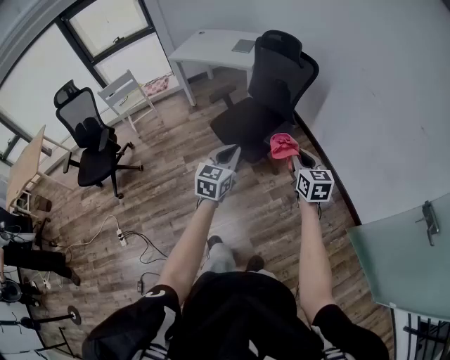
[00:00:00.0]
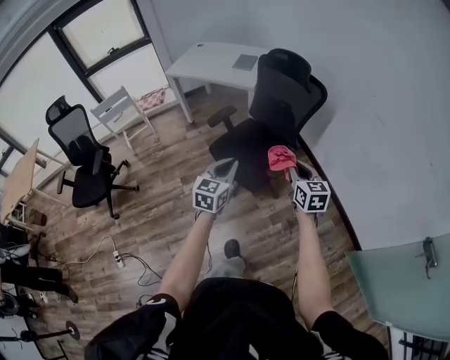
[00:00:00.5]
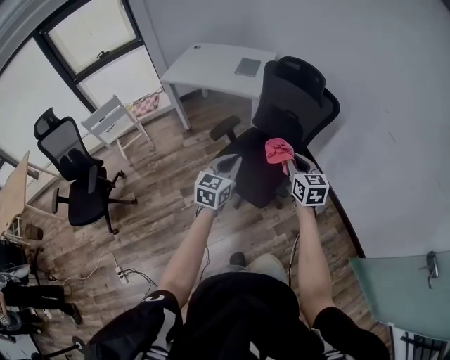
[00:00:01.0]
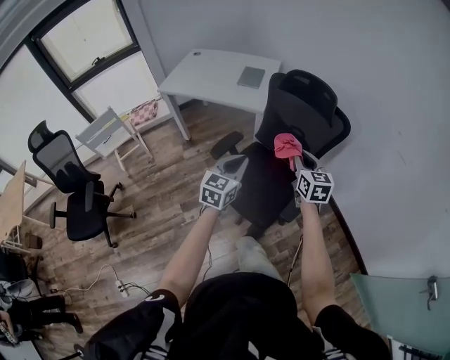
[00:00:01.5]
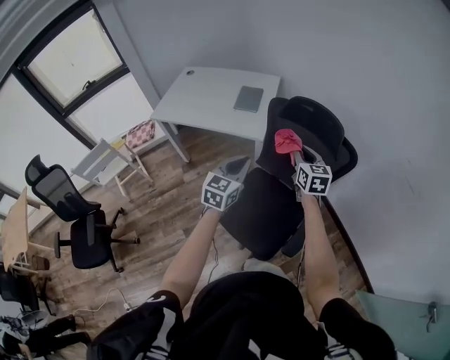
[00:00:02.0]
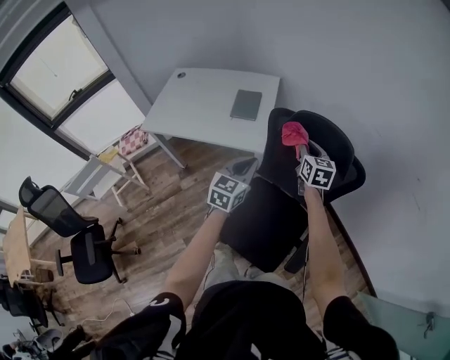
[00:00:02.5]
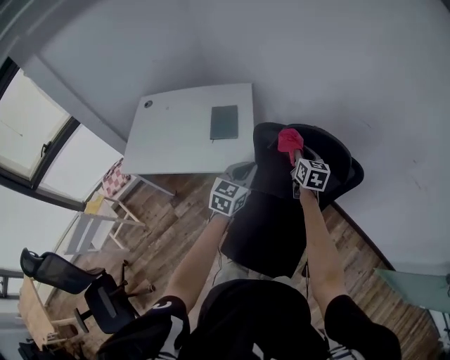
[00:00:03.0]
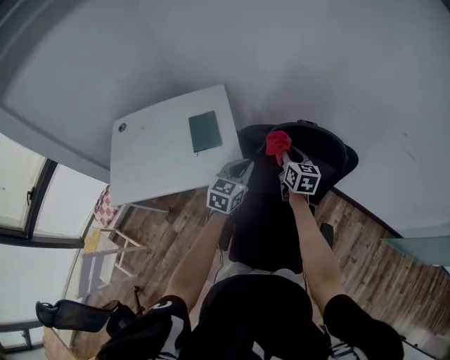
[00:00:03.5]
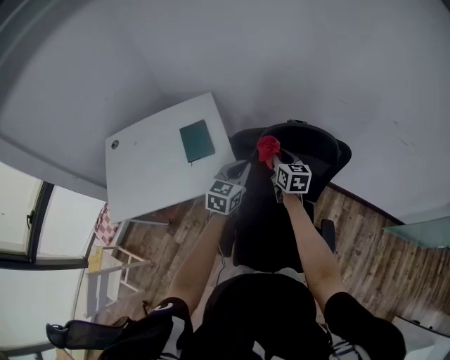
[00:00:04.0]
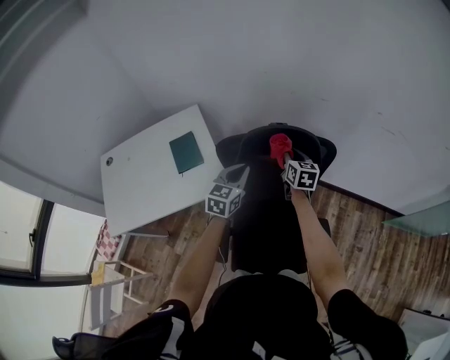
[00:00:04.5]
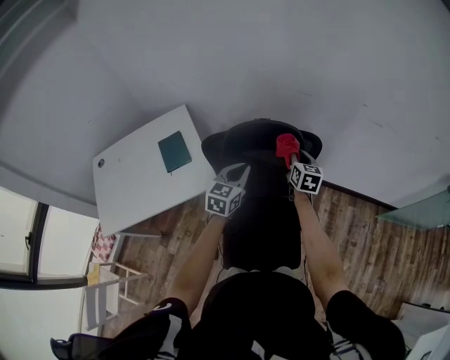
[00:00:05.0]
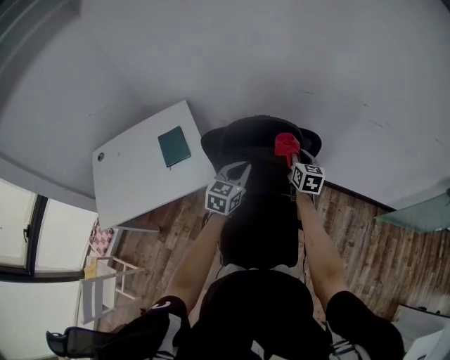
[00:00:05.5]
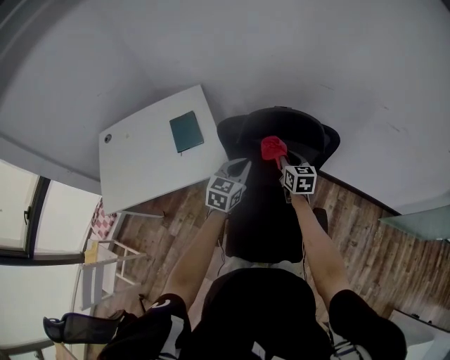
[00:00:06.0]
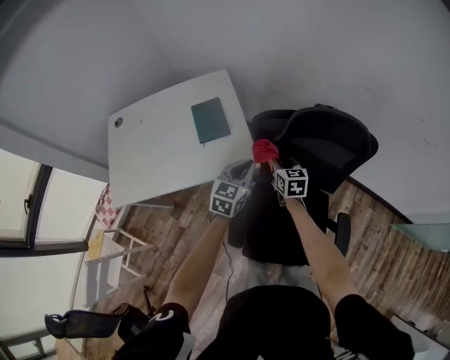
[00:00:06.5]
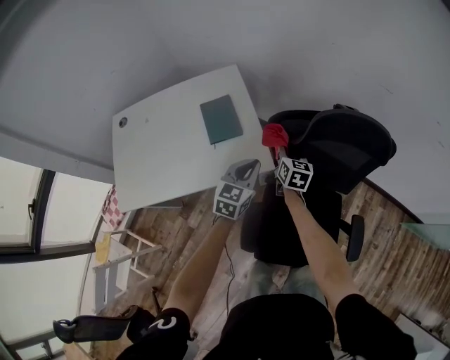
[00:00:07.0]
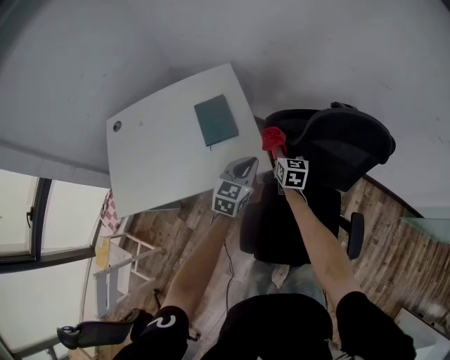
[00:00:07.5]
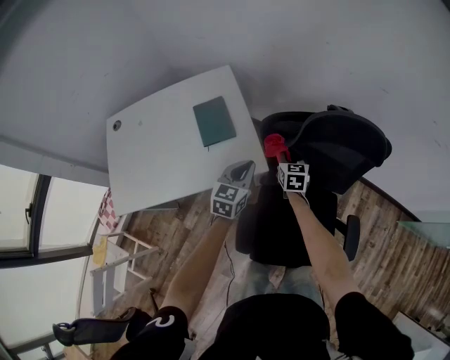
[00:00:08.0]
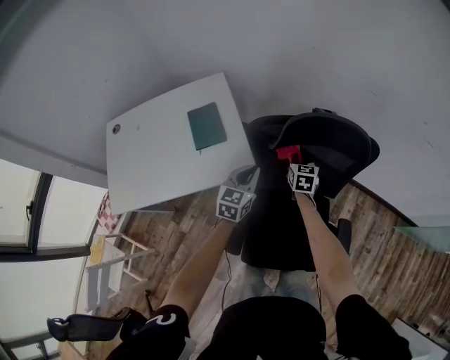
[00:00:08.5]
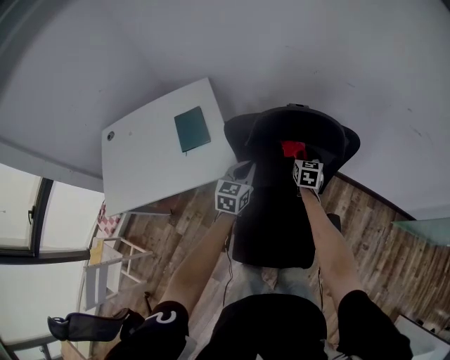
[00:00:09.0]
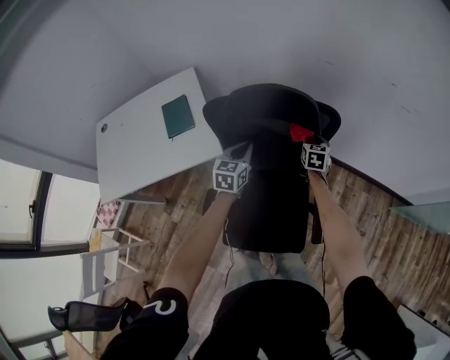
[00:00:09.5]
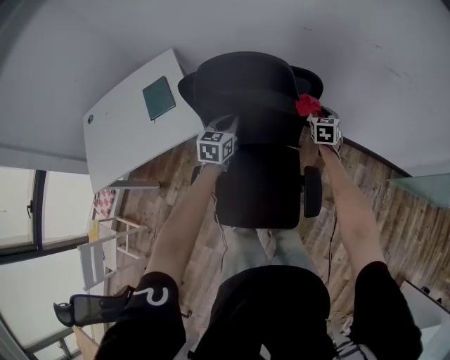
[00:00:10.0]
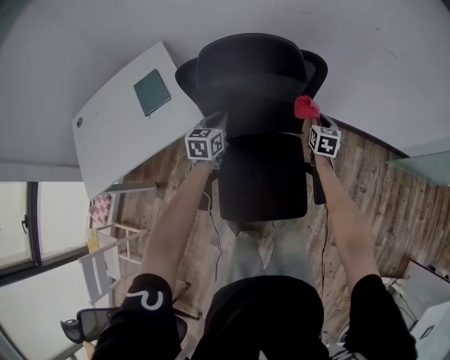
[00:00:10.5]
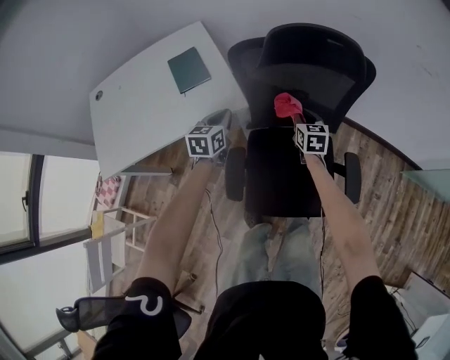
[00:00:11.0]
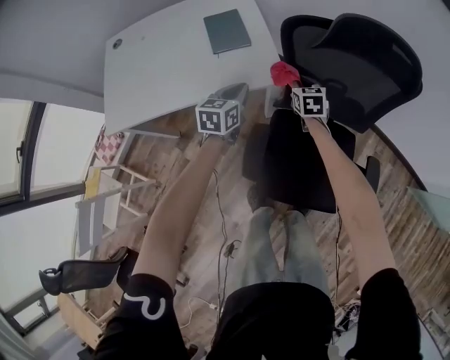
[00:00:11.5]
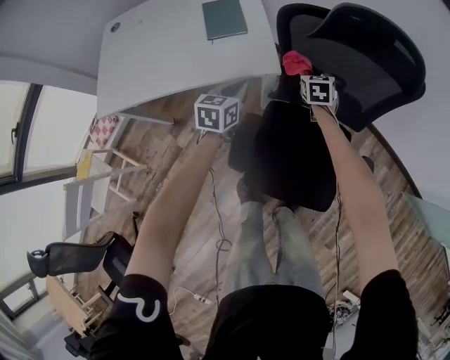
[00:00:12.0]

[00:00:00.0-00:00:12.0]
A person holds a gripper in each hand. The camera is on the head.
00:00:00.0 to 00:00:02.0: Both grippers are carried forward, about 60 cm.
00:00:02.0 to 00:00:04.0: The right gripper ends up about 25 cm from where it was, and turns by roughly 30 degrees. The left gripper shifts by approximately 30 cm, and turns by some 30 degrees.
00:00:04.0 to 00:00:06.0: The grippers both shift to the right by roughly 10 cm.
00:00:06.0 to 00:00:08.0: The two grippers go roughly 20 cm to the left and downward.
00:00:08.0 to 00:00:10.0: The right gripper is displaced to the right by approximately 40 cm, while the left gripper heads to the right, covering about 25 cm.
00:00:10.0 to 00:00:12.0: The left gripper is displaced to the left and backward by some 30 cm. Meanwhile the right gripper is displaced to the left by about 40 cm.

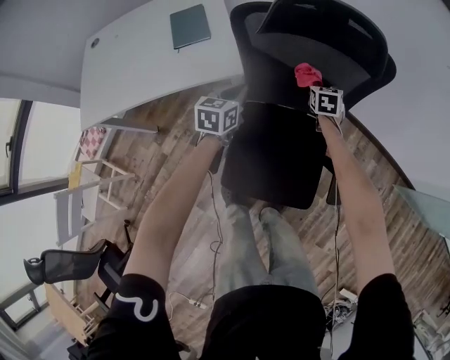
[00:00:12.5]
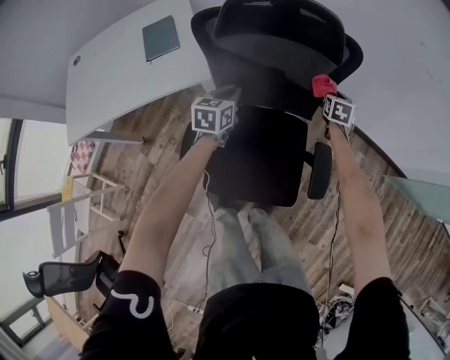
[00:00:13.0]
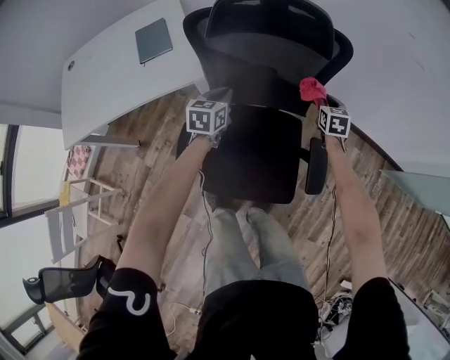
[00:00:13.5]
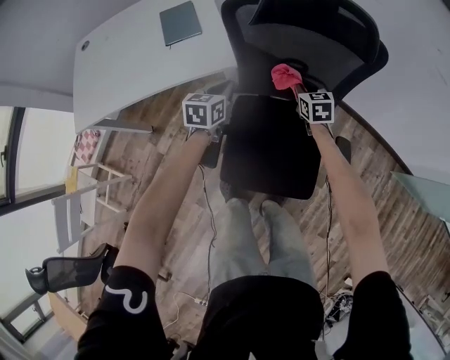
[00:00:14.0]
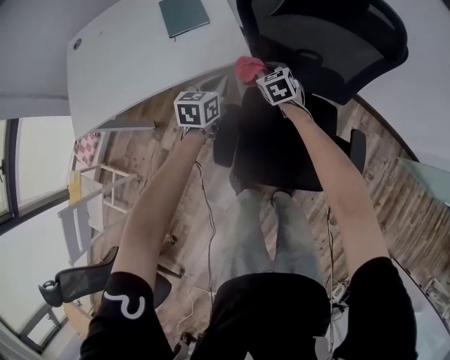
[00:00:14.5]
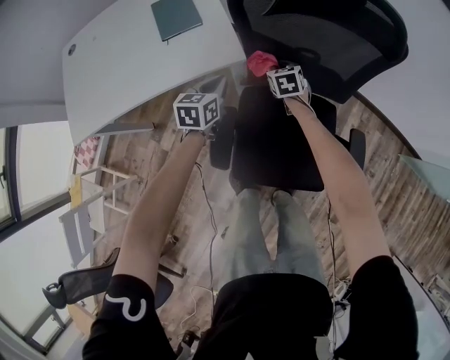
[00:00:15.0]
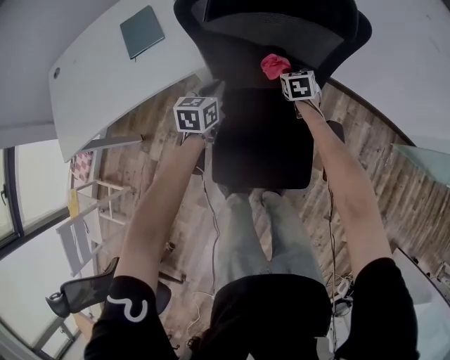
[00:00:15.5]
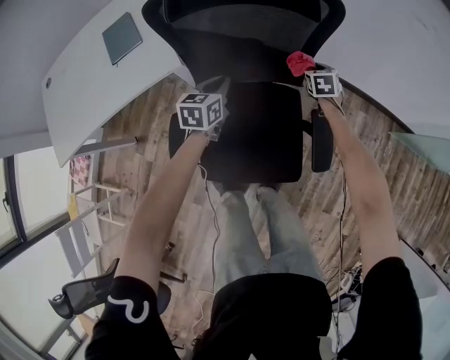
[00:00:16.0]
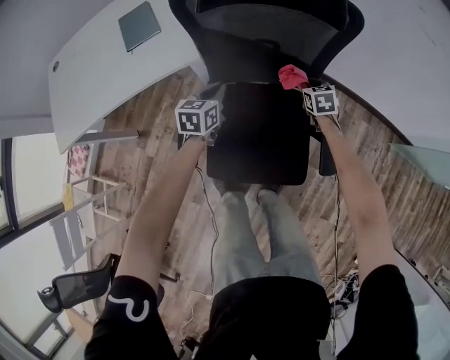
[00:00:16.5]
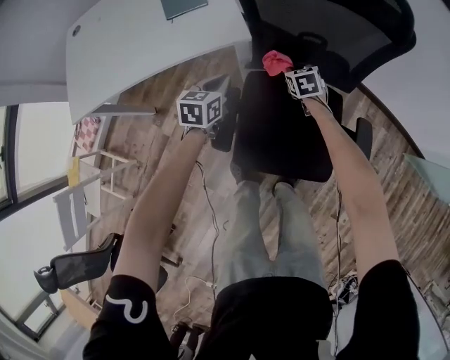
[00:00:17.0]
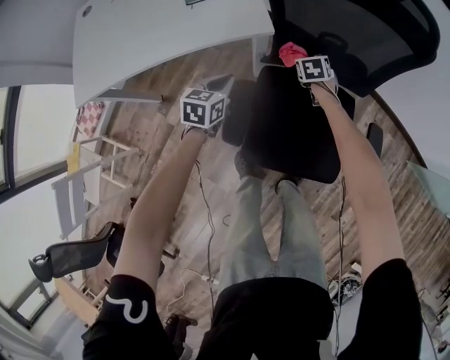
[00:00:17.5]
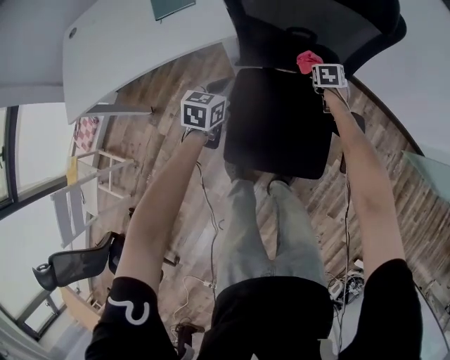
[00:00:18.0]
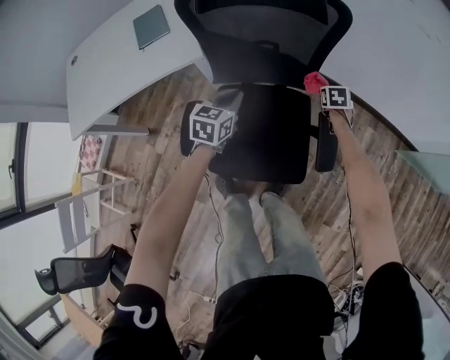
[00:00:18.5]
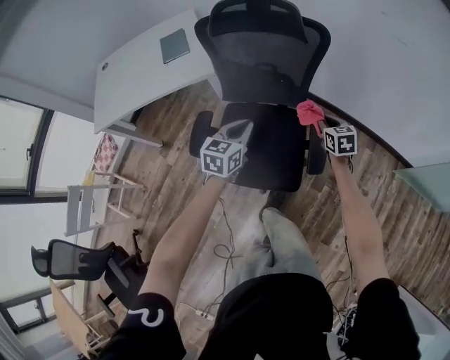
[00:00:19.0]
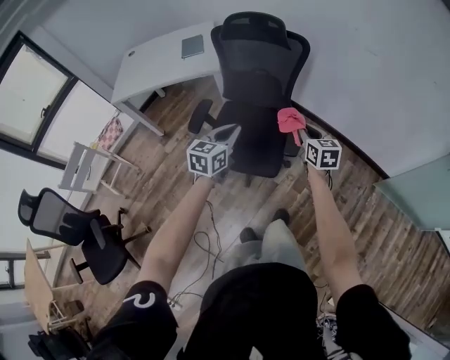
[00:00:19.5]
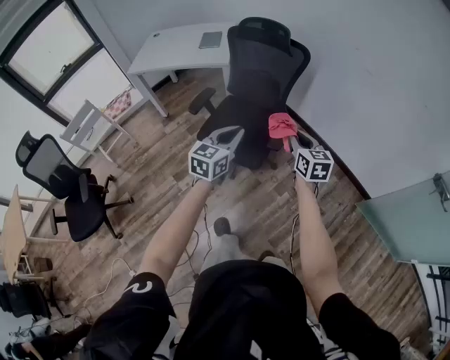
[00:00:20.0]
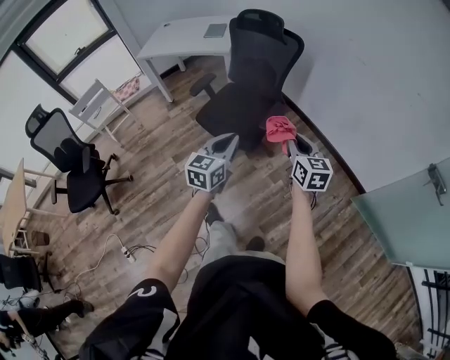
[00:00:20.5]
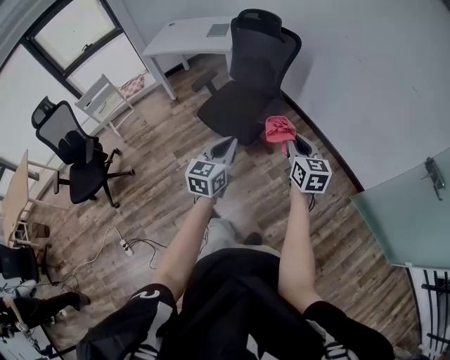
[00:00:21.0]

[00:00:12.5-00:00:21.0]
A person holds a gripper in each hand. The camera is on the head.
00:00:12.5 to 00:00:14.5: The left gripper travels to the left by some 10 cm; the right gripper goes roughly 25 cm to the left, and swivels about 20 degrees.
00:00:14.5 to 00:00:16.5: The left gripper heads to the right, covering roughly 15 cm, while the right gripper is displaced to the right by some 30 cm.
00:00:16.5 to 00:00:19.0: The left gripper heads backward, to the right and upward, covering some 30 cm; the right gripper shifts approximately 20 cm backward and upward, and goes to the left and returns, roughly 25 cm each way.
00:00:19.0 to 00:00:21.0: The two grippers travel together, backward, approximately 50 cm. The right gripper heads upward, covering some 25 cm, and turns by about 30 degrees. Meanwhile the left gripper turns by approximately 30 degrees.

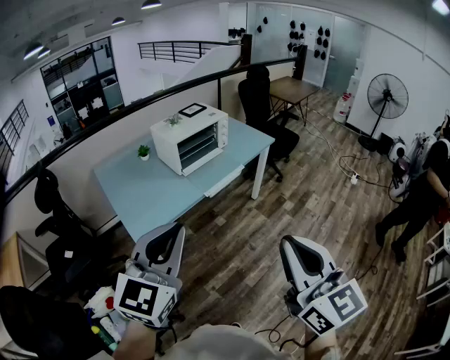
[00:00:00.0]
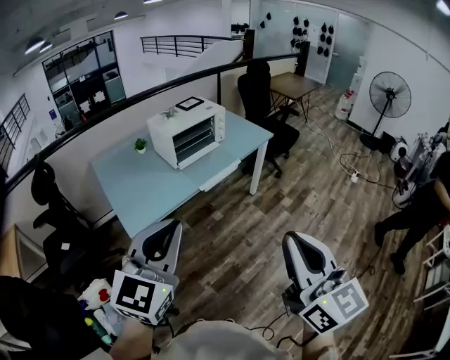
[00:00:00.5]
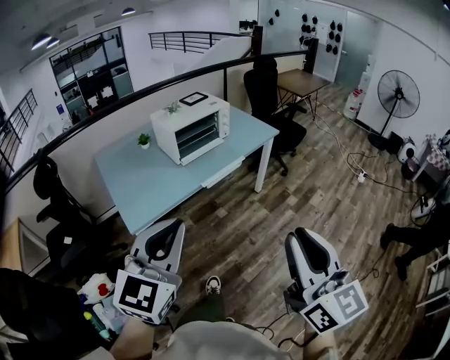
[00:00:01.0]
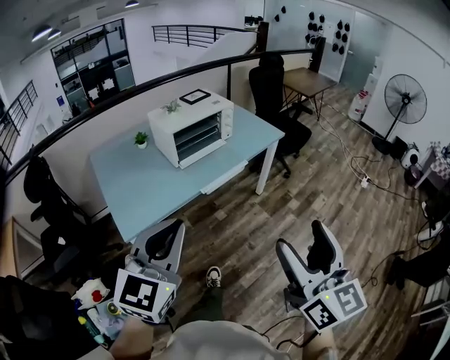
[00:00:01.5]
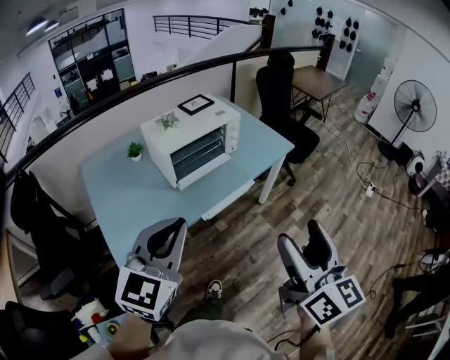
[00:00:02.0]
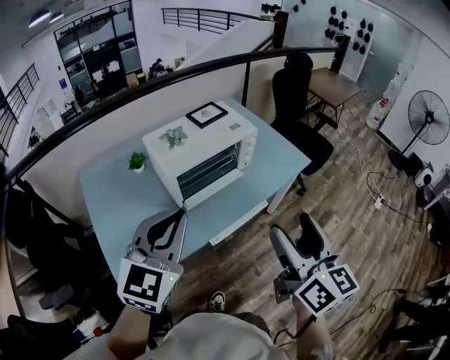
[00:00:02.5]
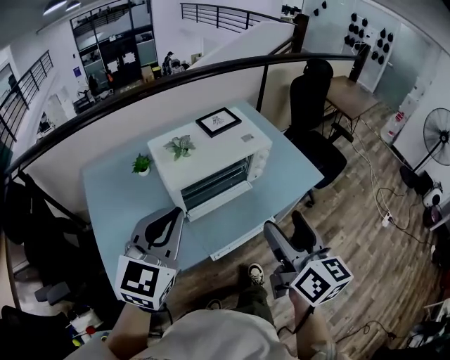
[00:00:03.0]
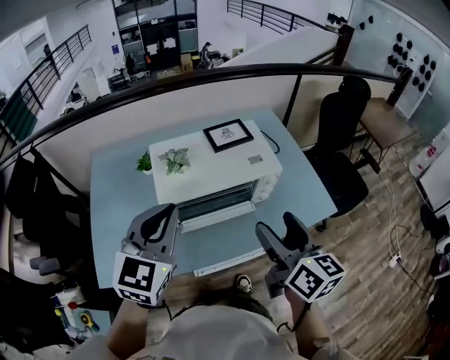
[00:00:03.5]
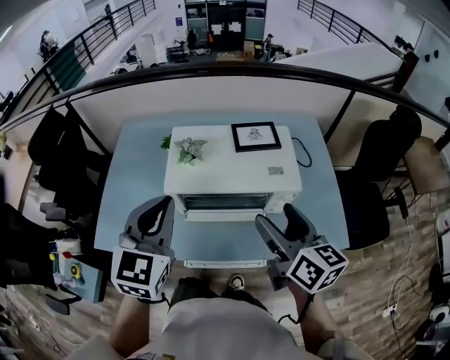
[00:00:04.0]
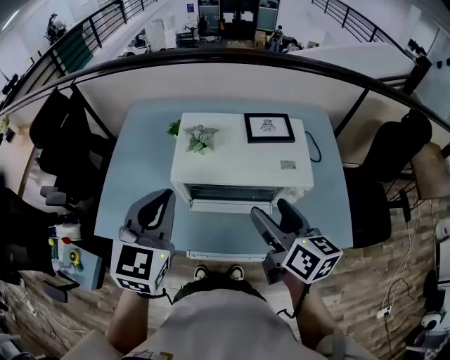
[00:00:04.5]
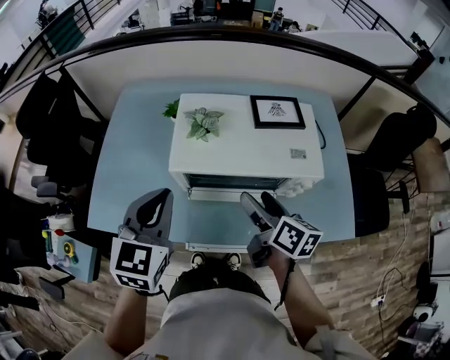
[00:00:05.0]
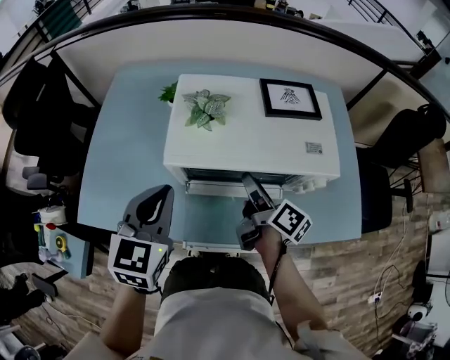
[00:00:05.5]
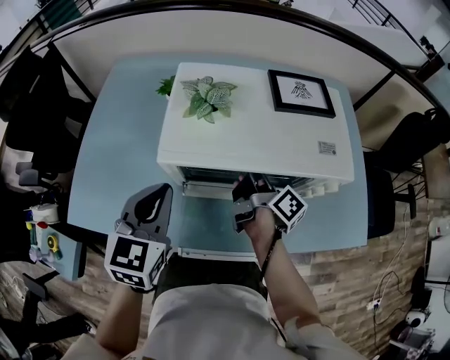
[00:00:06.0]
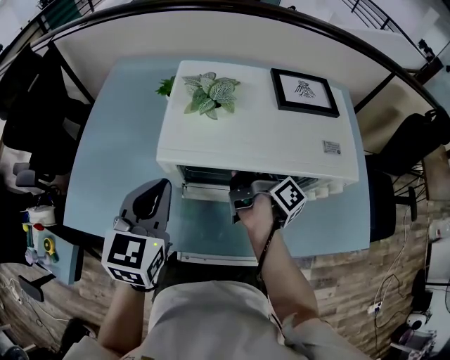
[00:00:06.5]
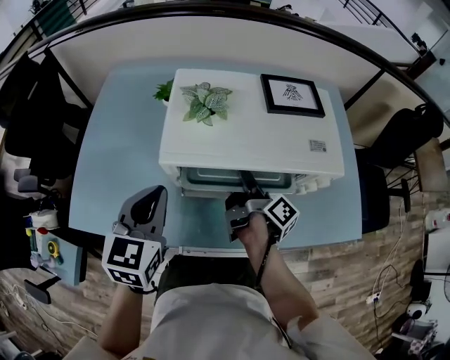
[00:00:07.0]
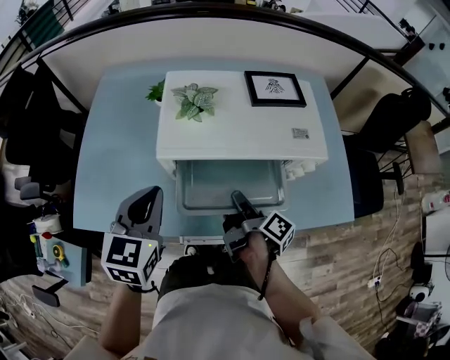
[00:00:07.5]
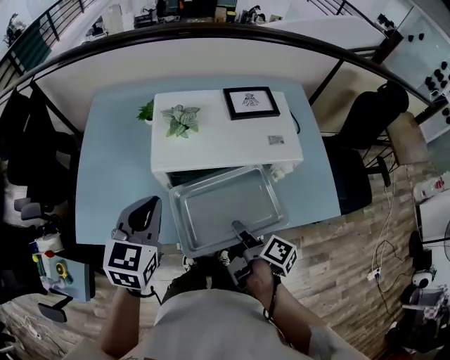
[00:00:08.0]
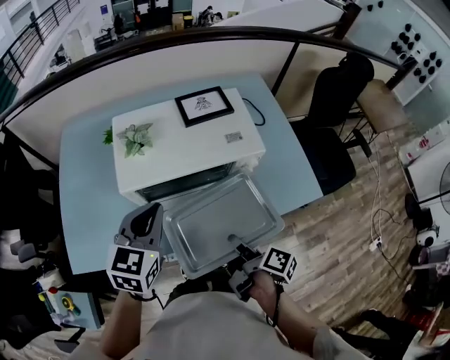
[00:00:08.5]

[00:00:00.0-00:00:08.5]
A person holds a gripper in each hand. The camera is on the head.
00:00:00.0 to 00:00:02.0: The grippers both shift forward by roughly 30 cm. The right gripper opens.
00:00:02.0 to 00:00:04.0: The left gripper changes place by about 35 cm, and swivels some 50 degrees, while the right gripper changes place by roughly 50 cm, and rotates about 50 degrees.
00:00:04.0 to 00:00:06.5: The right gripper goes some 35 cm downward and forward, twists about 60 degrees clockwise, seen from behind, and closes its fingers. Meanwhile the left gripper is displaced downward by about 20 cm.
00:00:06.5 to 00:00:08.5: The right gripper goes approximately 30 cm backward, and rotates roughly 20 degrees. The left gripper moves to the right and upward, about 15 cm, and rotates about 20 degrees.
